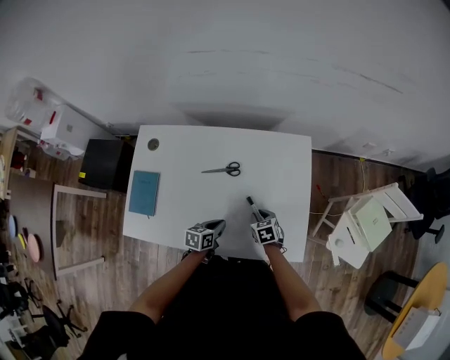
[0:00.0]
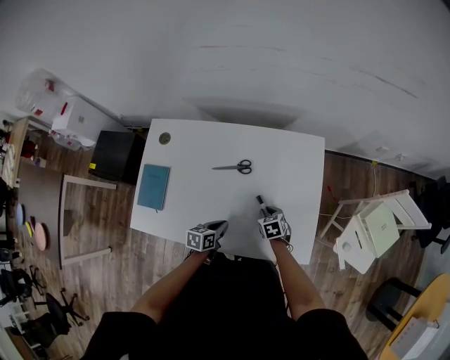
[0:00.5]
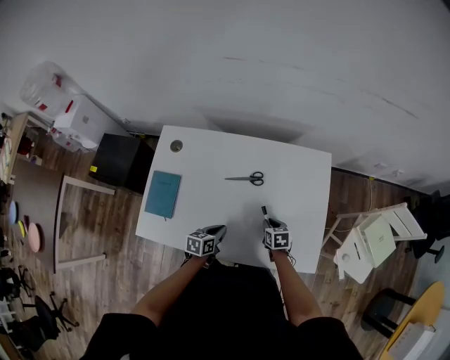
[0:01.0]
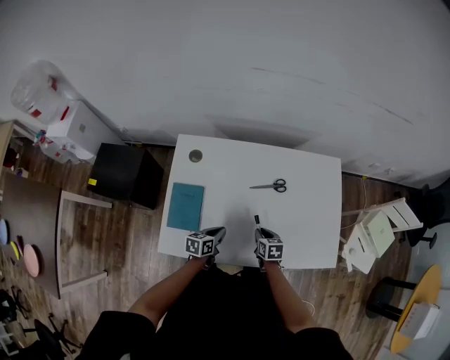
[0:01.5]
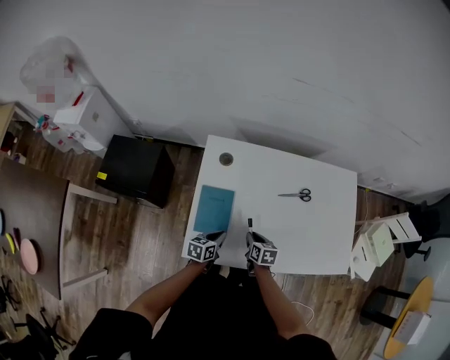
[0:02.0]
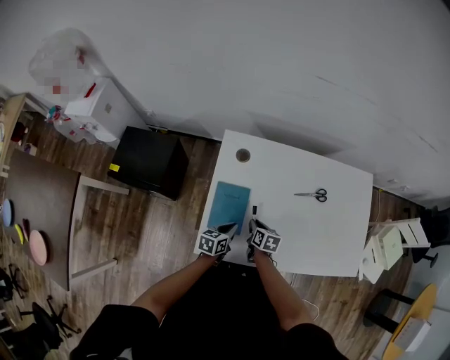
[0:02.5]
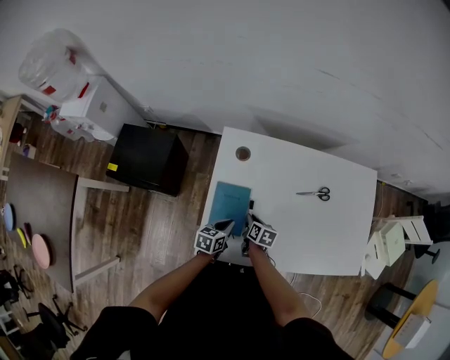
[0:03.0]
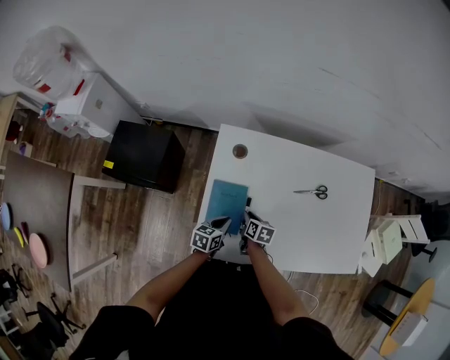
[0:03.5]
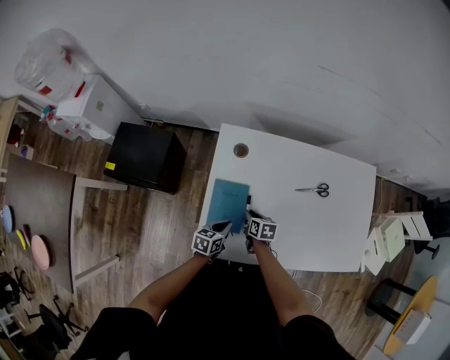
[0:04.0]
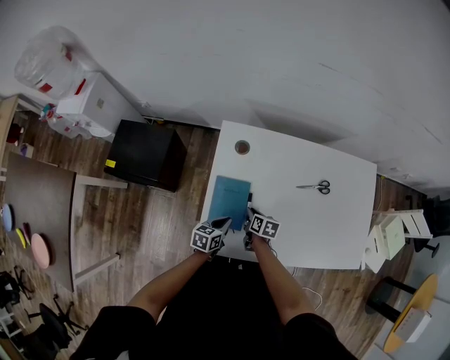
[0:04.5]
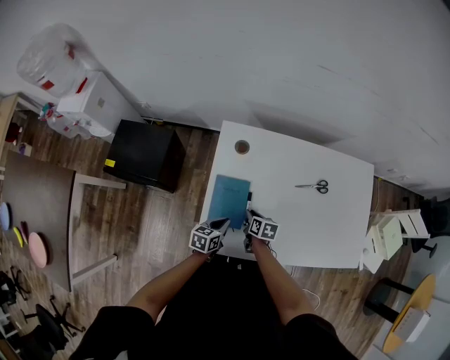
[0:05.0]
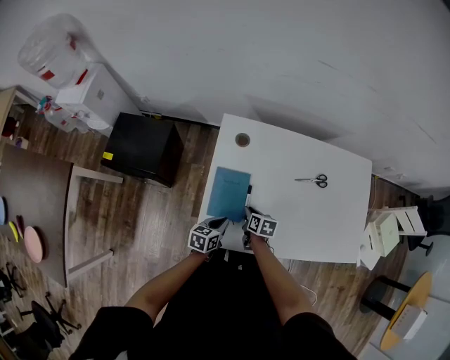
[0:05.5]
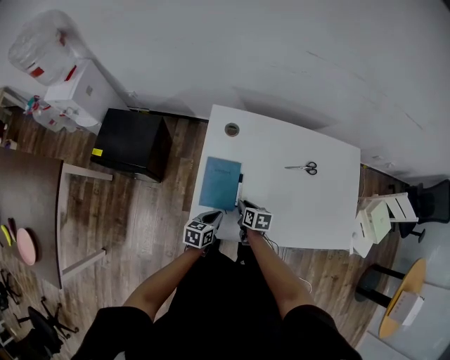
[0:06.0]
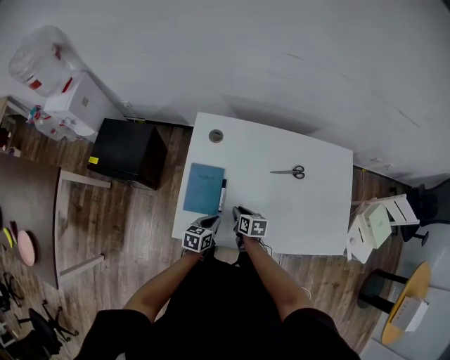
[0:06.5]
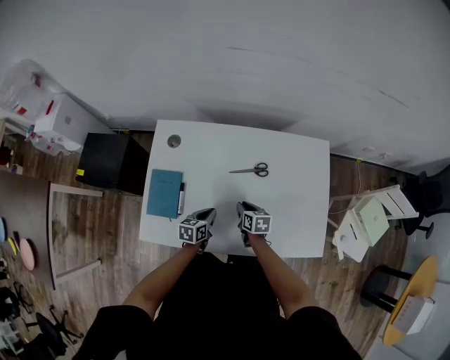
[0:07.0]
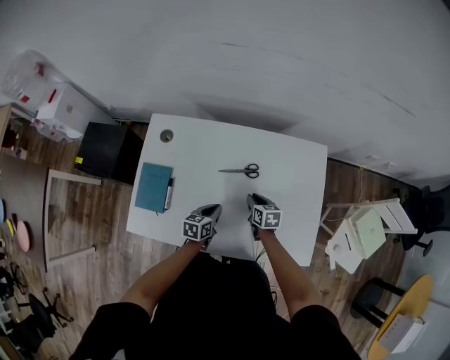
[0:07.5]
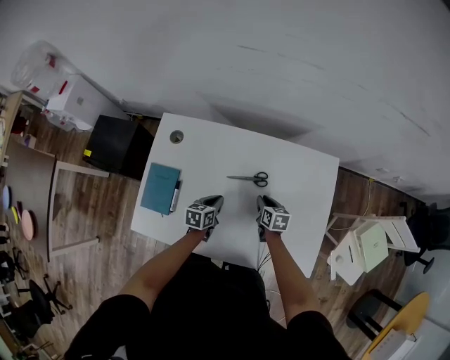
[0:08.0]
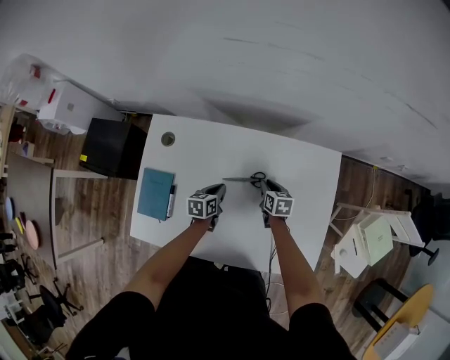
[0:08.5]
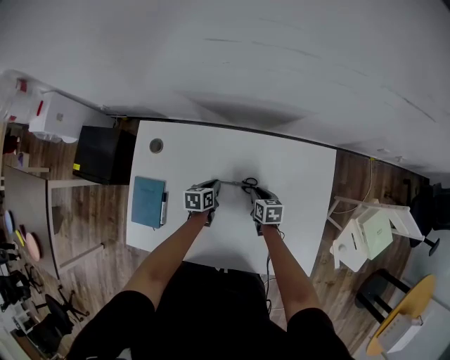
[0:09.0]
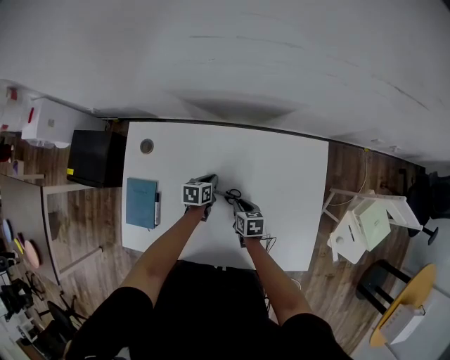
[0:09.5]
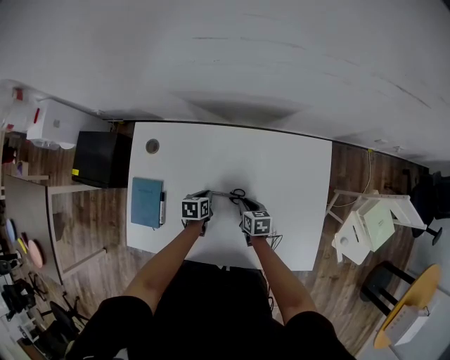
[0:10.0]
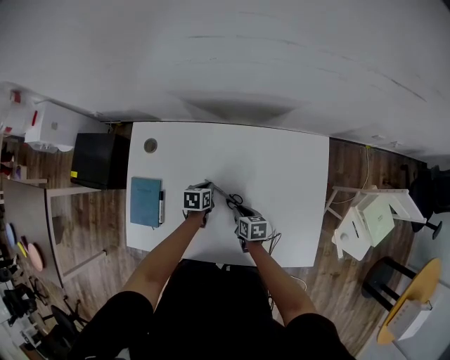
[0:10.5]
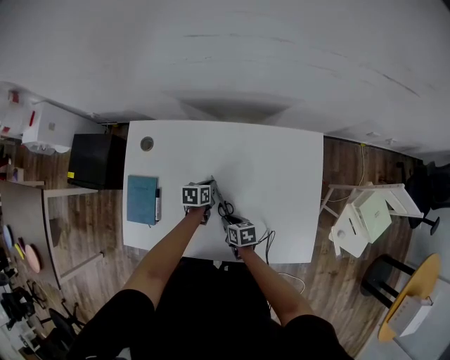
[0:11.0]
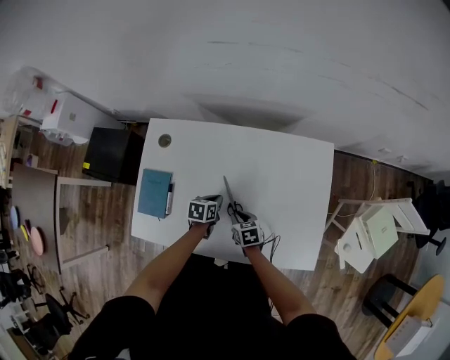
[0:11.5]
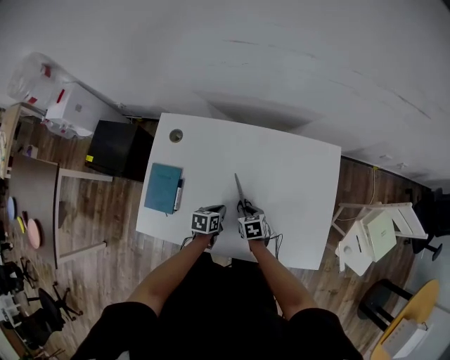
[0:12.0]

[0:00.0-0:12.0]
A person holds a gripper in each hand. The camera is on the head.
0:00.0 to 0:02.0: The two grippers go about 35 cm to the left. The right gripper swivels roughly 30 degrees.
0:02.0 to 0:04.0: The right gripper goes approximately 10 cm to the left and forward.
0:04.0 to 0:06.0: The grippers both shift backward by roughly 5 cm.
0:06.0 to 0:08.0: The two grippers go approximately 35 cm to the right and forward.
0:08.0 to 0:10.0: The left gripper goes about 5 cm downward, while the right gripper travels forward and back again, approximately 5 cm each way.
0:10.0 to 0:12.0: The right gripper moves backward and to the left, roughly 10 cm. Meanwhile the left gripper goes roughly 10 cm backward.

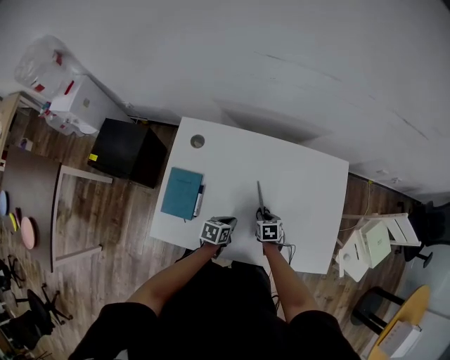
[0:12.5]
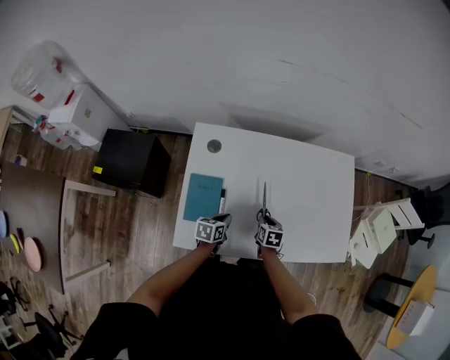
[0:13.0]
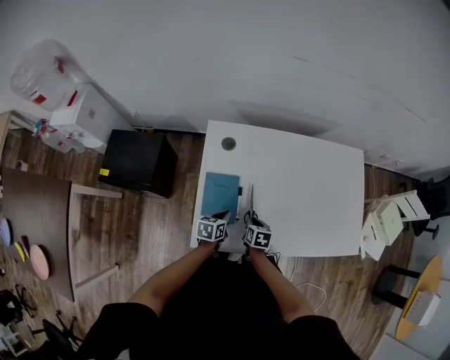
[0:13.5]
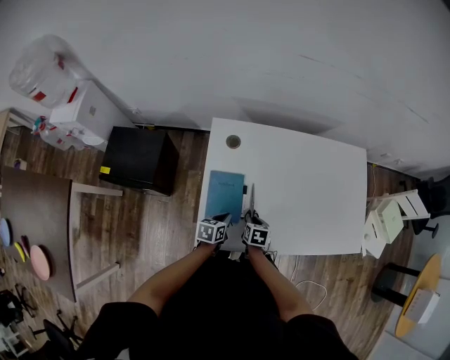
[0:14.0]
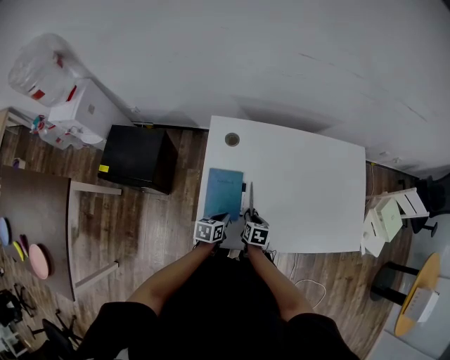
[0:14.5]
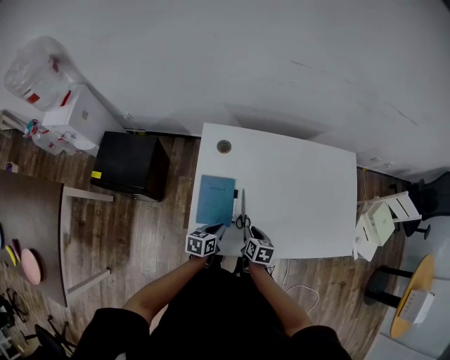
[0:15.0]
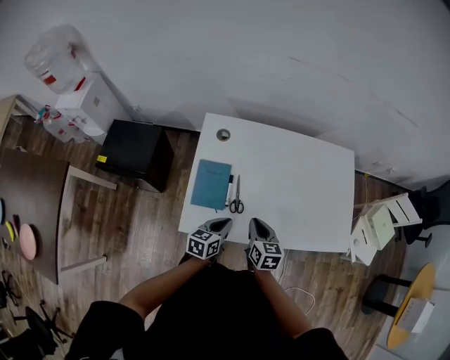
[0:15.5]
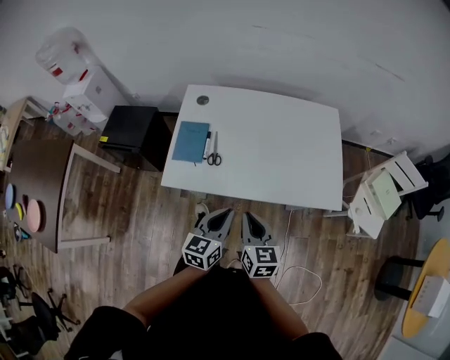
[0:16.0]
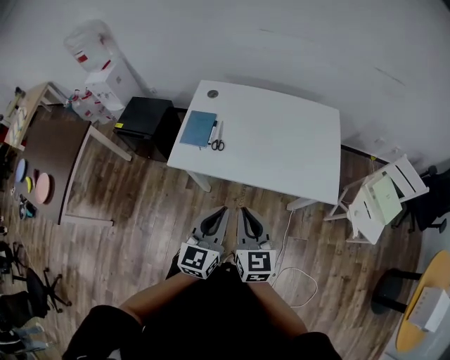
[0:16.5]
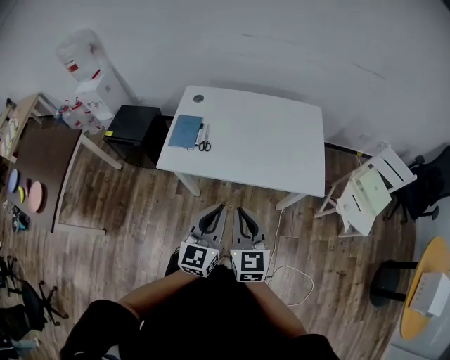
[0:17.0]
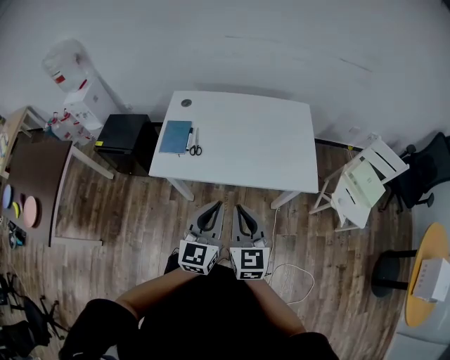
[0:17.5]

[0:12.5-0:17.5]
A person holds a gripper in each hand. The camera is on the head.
0:12.5 to 0:15.0: The grippers both shift to the left and backward by about 25 cm. The right gripper changes its angle by about 30 degrees.
0:15.0 to 0:17.5: The grippers both shift upward, backward and to the right by some 50 cm. The right gripper tips its fingers upward by roughly 40 degrees; the left gripper points its fingers some 30 degrees further upward.

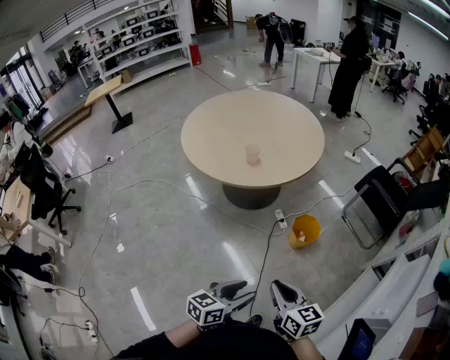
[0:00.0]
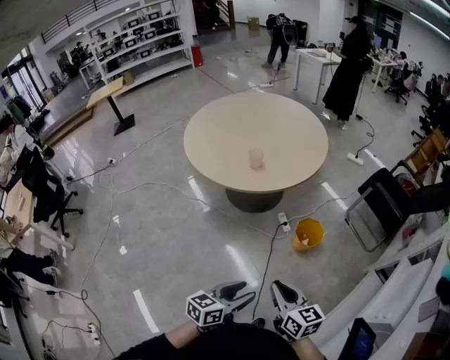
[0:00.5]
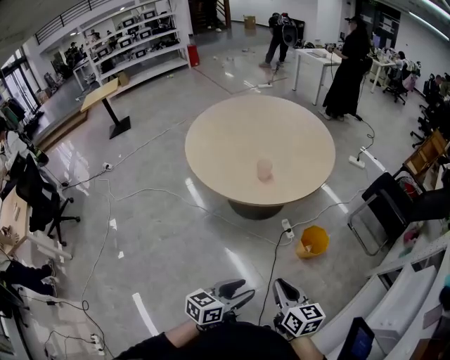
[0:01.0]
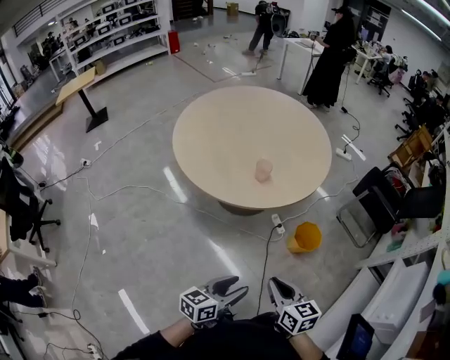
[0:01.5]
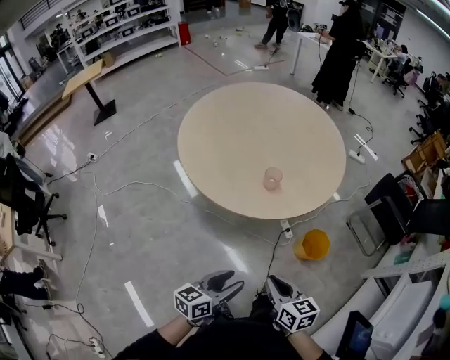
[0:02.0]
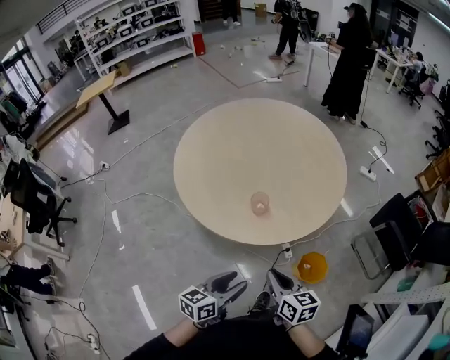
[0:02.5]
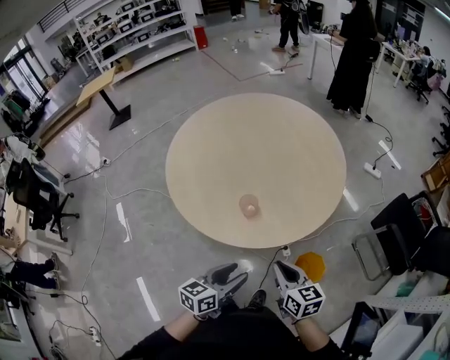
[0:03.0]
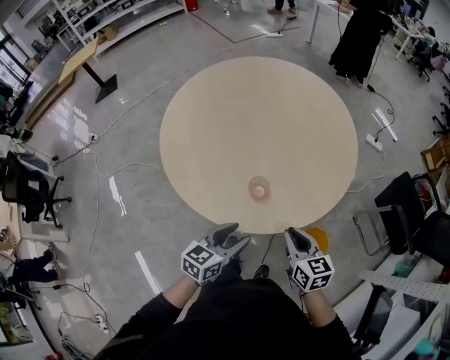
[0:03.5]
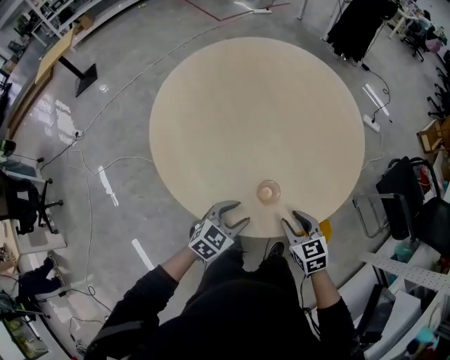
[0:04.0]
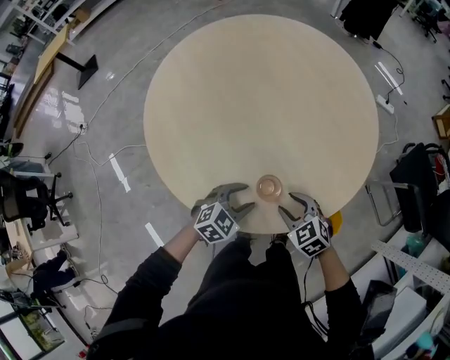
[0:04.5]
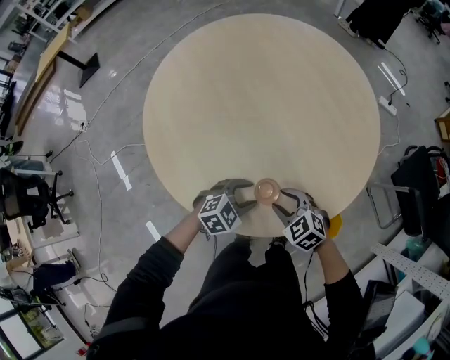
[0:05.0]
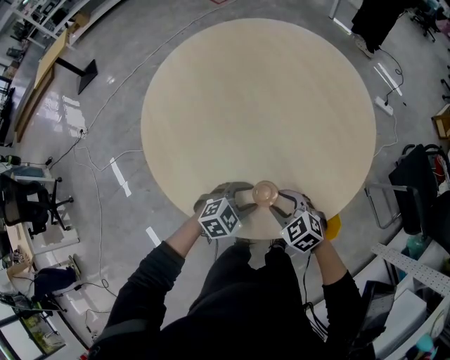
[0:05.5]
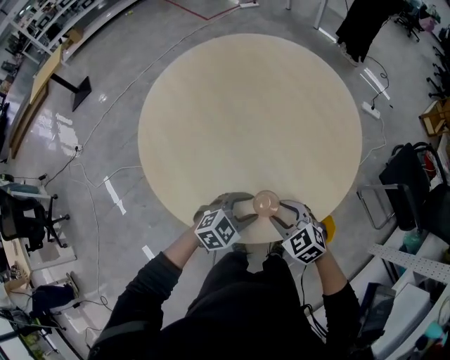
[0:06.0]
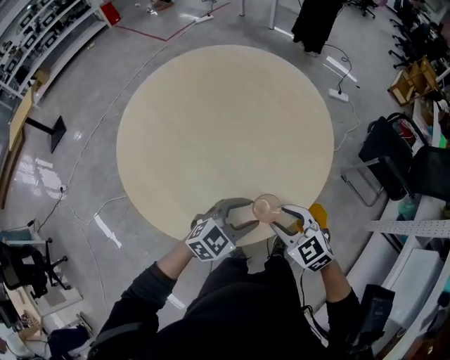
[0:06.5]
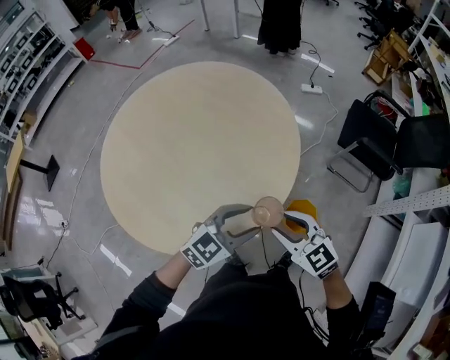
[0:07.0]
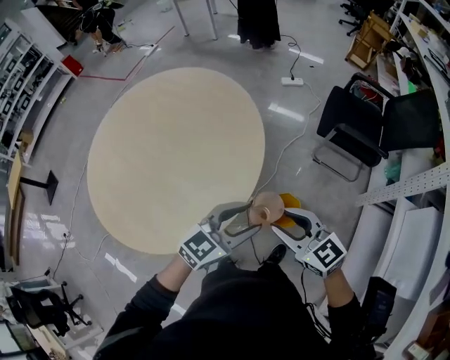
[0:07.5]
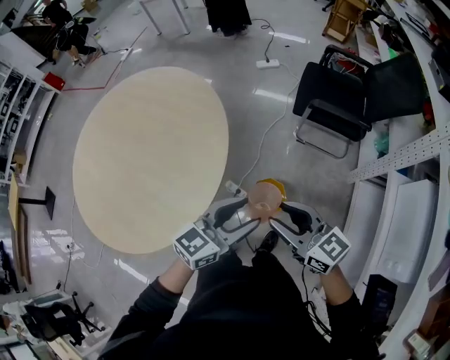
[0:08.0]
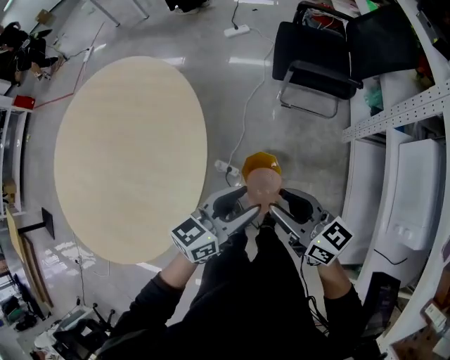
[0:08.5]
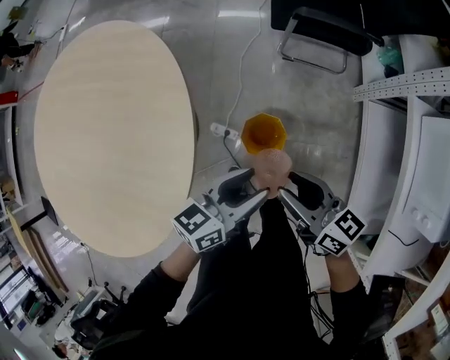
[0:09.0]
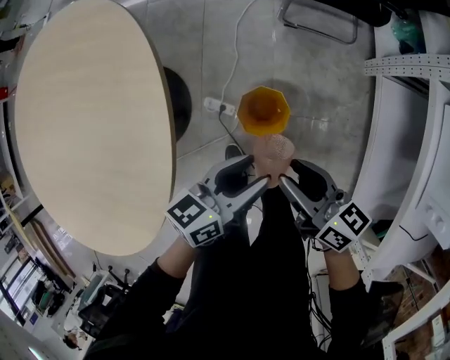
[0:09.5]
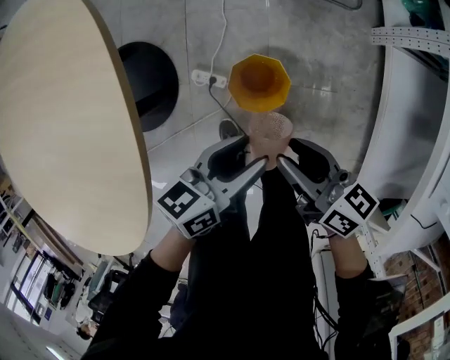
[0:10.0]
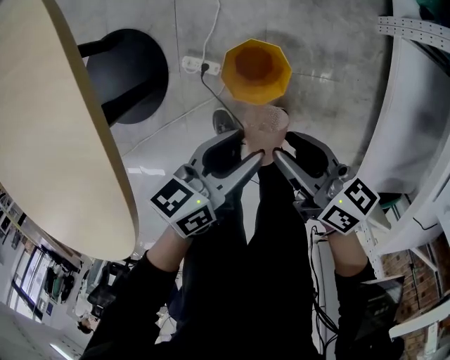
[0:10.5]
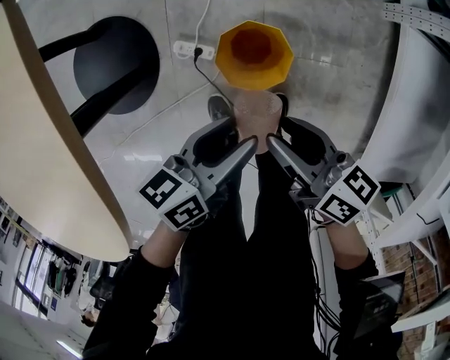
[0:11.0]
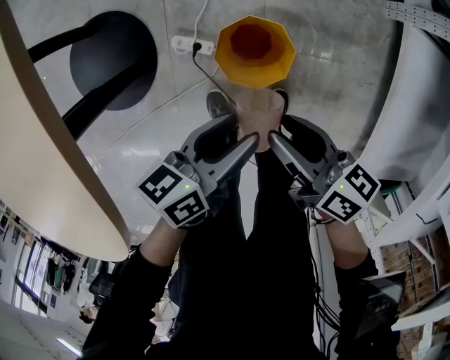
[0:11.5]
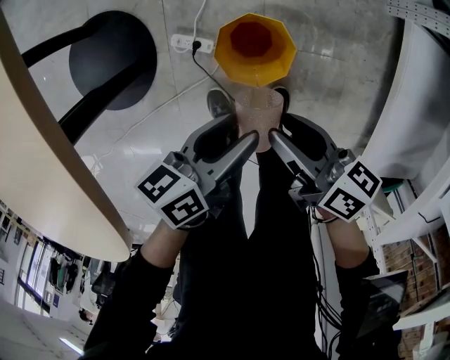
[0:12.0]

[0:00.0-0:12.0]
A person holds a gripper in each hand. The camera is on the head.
0:00.0 to 0:02.0: The two grippers go approximately 30 cm forward and to the left.
0:02.0 to 0:04.0: Both grippers move forward, about 35 cm. The right gripper turns by some 30 degrees, and opens up. The left gripper changes its angle by roughly 40 degrees.
0:04.0 to 0:06.0: The right gripper changes its angle by roughly 20 degrees; the left gripper is displaced to the right and forward by some 10 cm, and changes its angle by roughly 20 degrees.
0:06.0 to 0:08.0: Both grippers are carried about 40 cm. The left gripper turns by some 40 degrees. Meanwhile the right gripper tips its fingers upward by about 40 degrees.
0:08.0 to 0:10.0: Both grippers move downward, roughly 35 cm. The right gripper changes its angle by about 40 degrees, while the left gripper changes its angle by approximately 40 degrees.
0:10.0 to 0:12.0: Both grippers travel together downward, about 10 cm.
